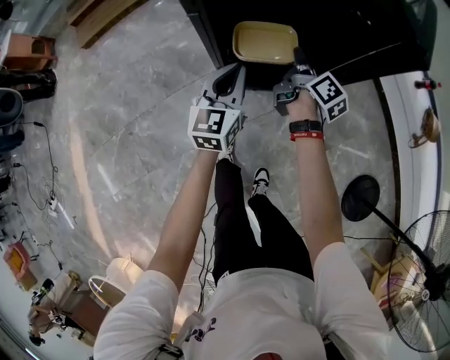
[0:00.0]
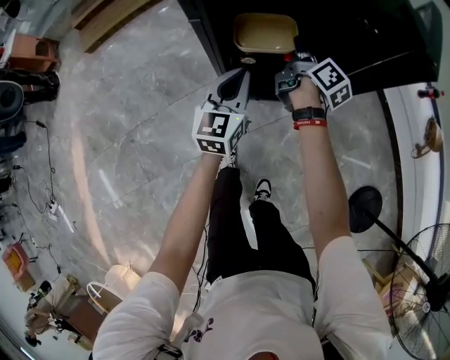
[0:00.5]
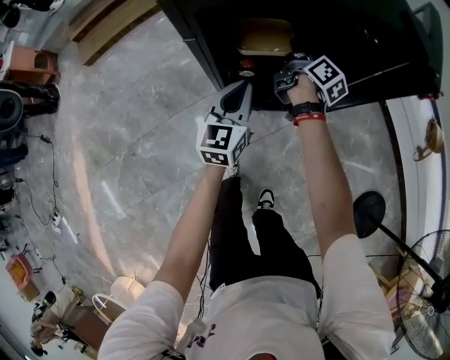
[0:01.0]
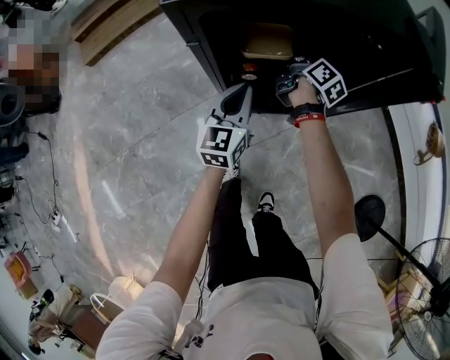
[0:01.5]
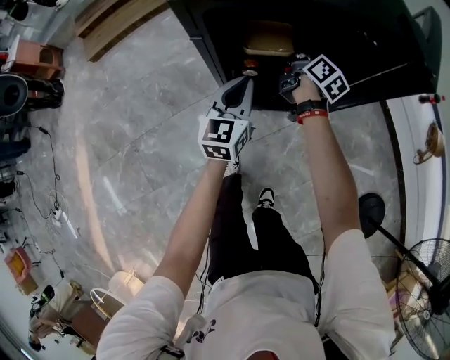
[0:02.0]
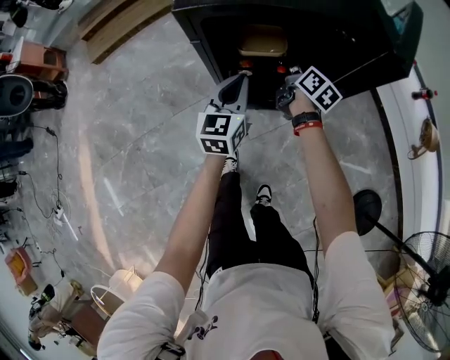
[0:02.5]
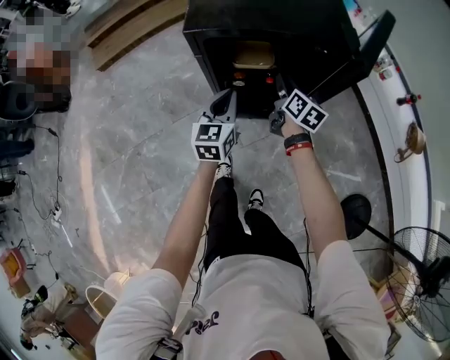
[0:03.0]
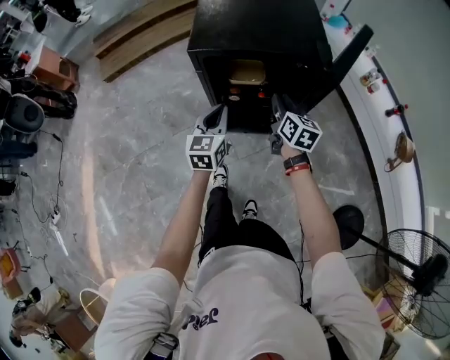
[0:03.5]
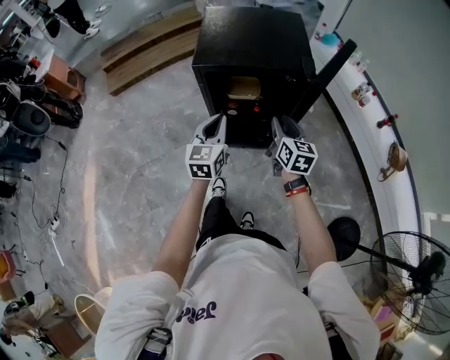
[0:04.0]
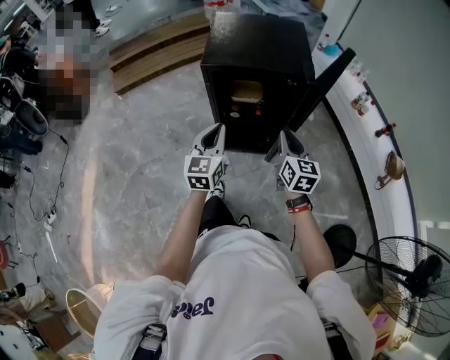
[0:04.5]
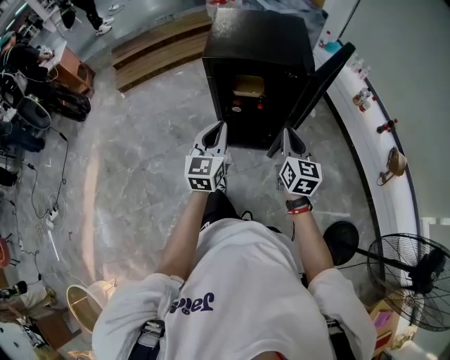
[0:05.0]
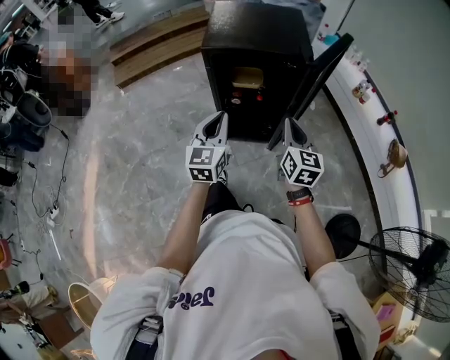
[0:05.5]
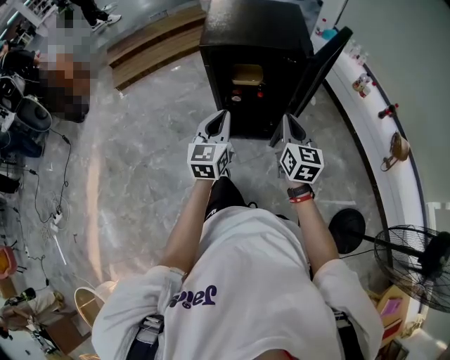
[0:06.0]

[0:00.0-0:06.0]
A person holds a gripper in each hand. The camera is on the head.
0:00.0 to 0:02.0: The right gripper is displaced forward by about 10 cm.
0:02.0 to 0:04.0: The right gripper goes some 40 cm backward and upward, and turns by approximately 40 degrees. The left gripper moves upward and backward, some 30 cm.
0:04.0 to 0:06.0: The left gripper heads backward, covering roughly 10 cm, while the right gripper shifts some 15 cm backward and upward, and closes its fingers.

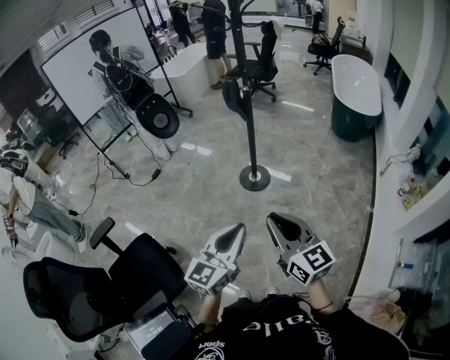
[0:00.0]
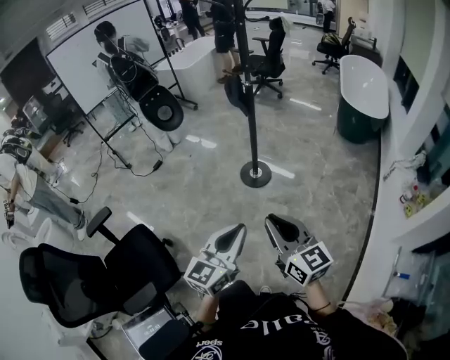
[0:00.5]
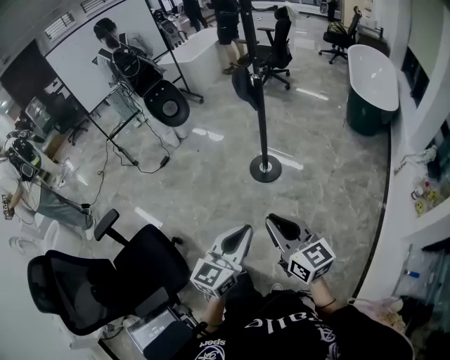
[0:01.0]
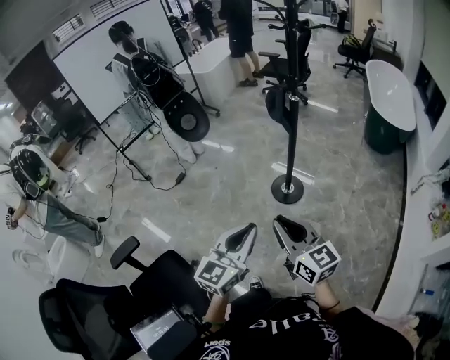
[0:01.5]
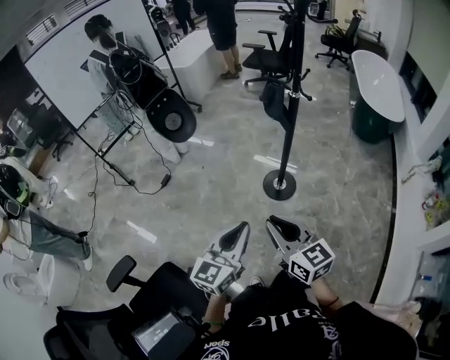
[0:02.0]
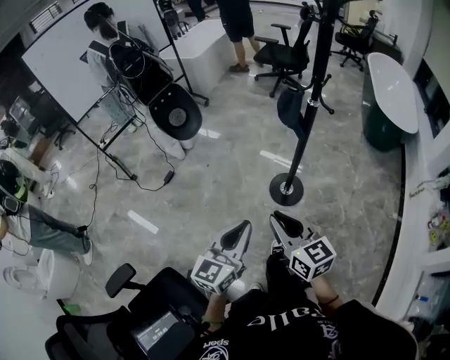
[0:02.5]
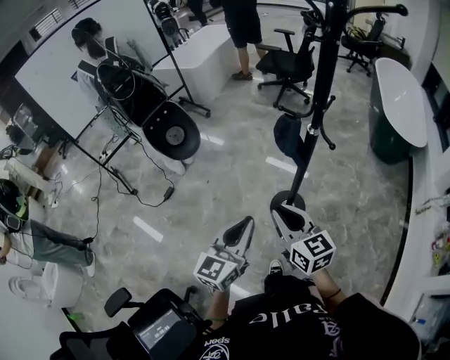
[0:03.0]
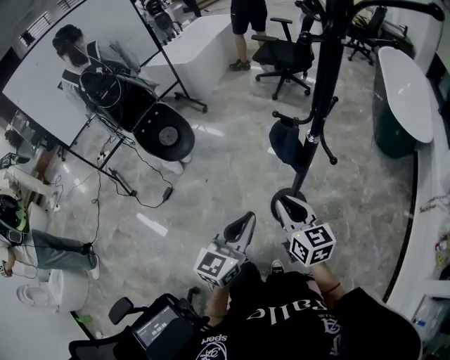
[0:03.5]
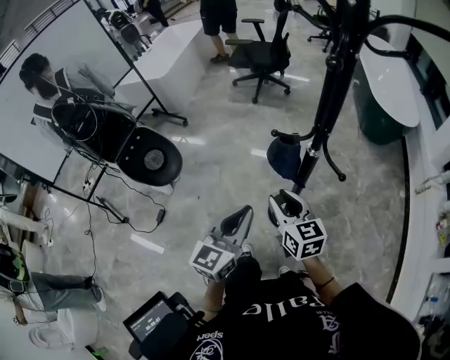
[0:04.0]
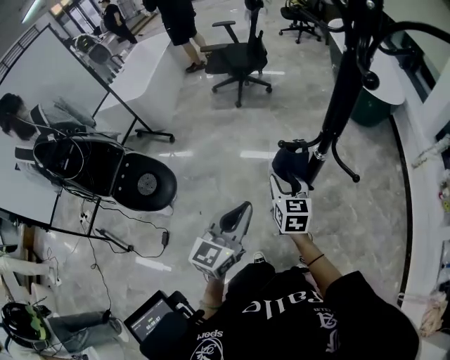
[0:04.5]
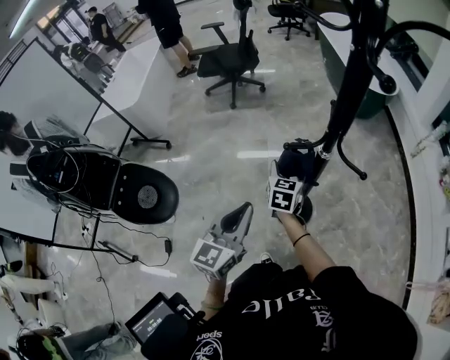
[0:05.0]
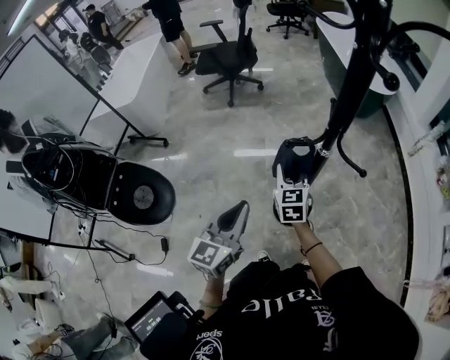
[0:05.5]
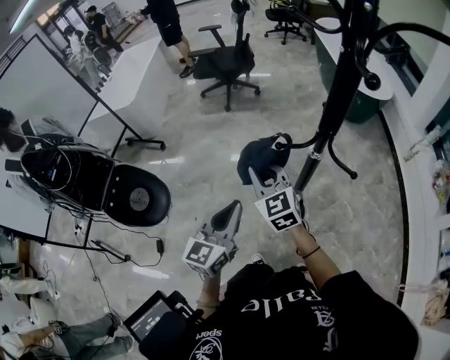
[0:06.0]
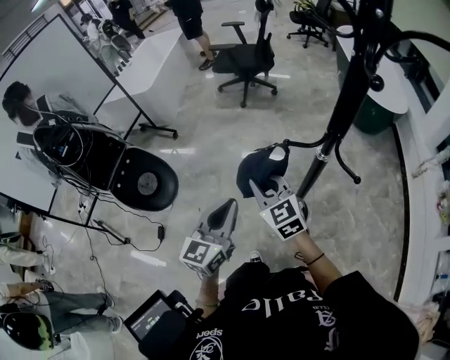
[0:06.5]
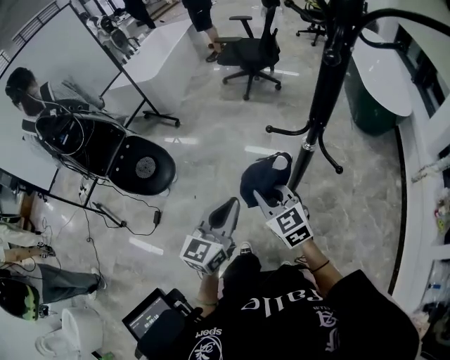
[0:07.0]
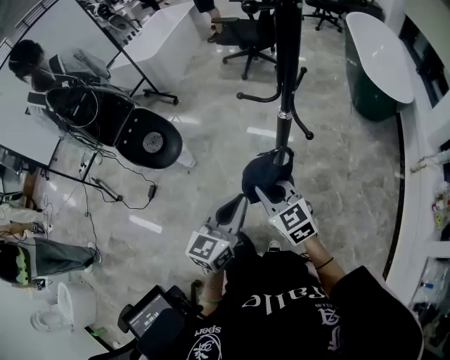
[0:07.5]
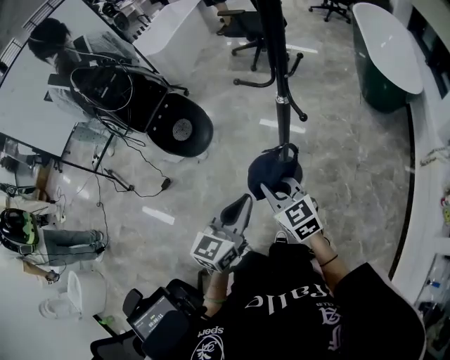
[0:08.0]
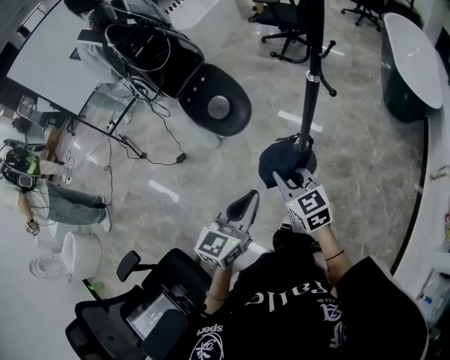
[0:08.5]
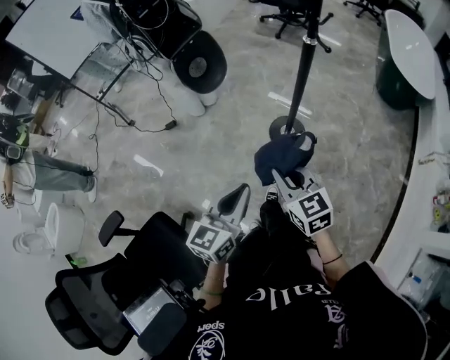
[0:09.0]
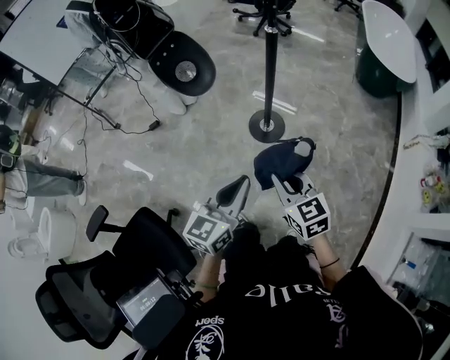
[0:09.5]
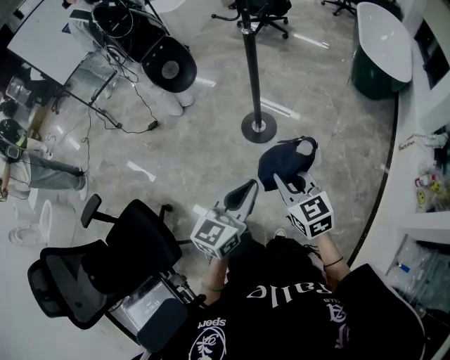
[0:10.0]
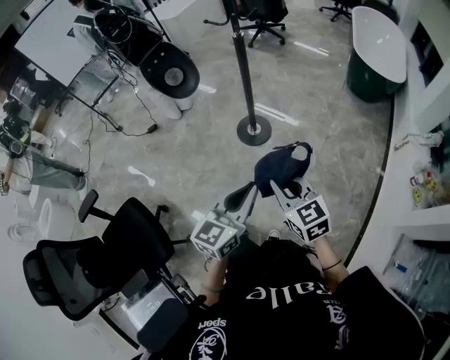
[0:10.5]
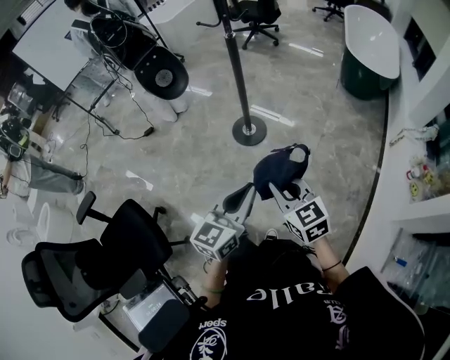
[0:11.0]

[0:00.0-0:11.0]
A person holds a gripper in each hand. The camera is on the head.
0:00.0 to 0:02.0: The grippers both shift forward and to the left by about 40 cm.
0:02.0 to 0:03.5: The grippers both shift forward by some 40 cm.
0:03.5 to 0:05.5: The right gripper ends up roughly 30 cm from where it was, changes its angle by roughly 40 degrees, and opens, then closes again, while the left gripper shifts by approximately 25 cm, and changes its angle by some 20 degrees.
0:05.5 to 0:07.5: The left gripper ends up some 10 cm from where it was; the right gripper ends up about 20 cm from where it was, and rotates about 50 degrees.
0:07.5 to 0:09.0: Both grippers move backward and to the left, some 30 cm.
0:09.0 to 0:11.0: Both grippers travel together to the right and backward, approximately 35 cm.

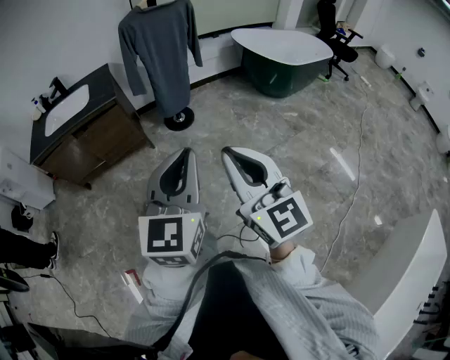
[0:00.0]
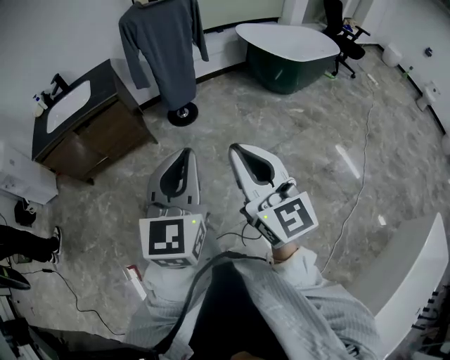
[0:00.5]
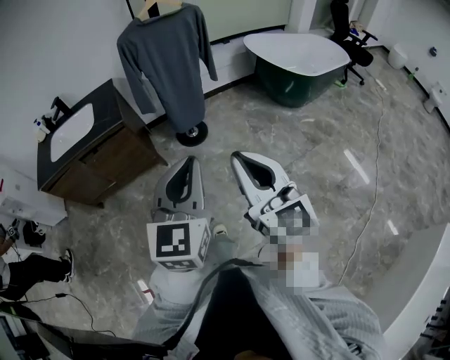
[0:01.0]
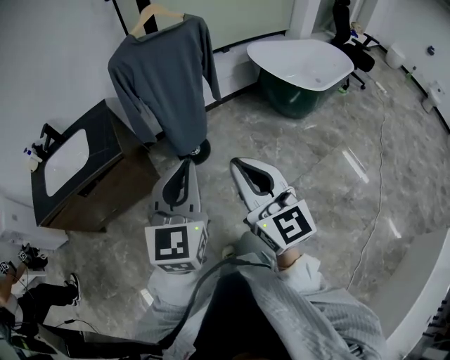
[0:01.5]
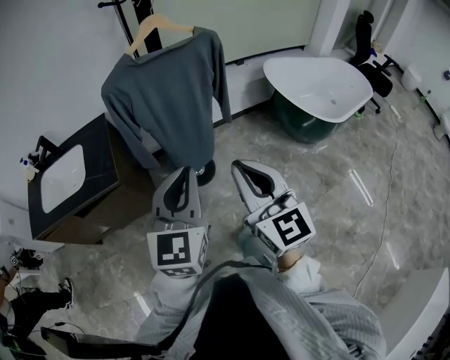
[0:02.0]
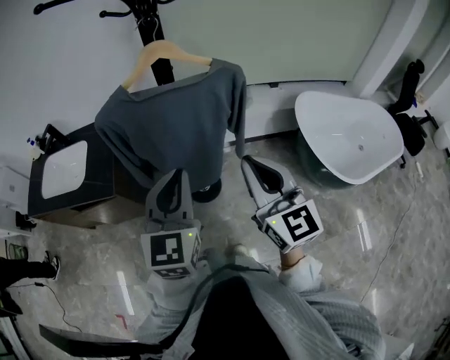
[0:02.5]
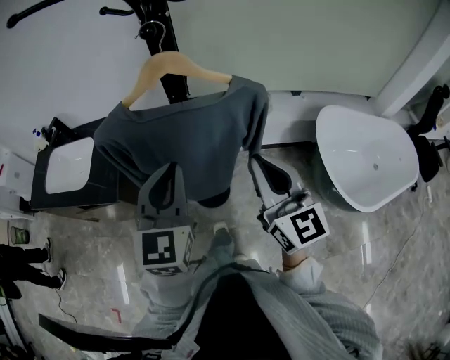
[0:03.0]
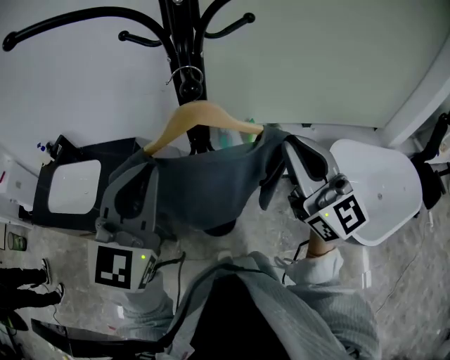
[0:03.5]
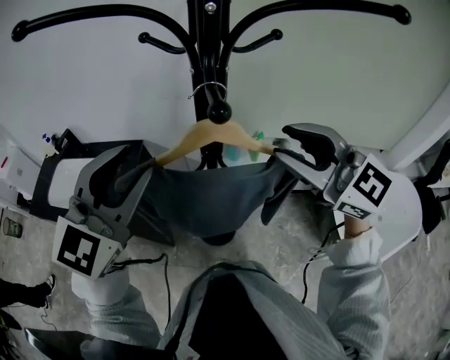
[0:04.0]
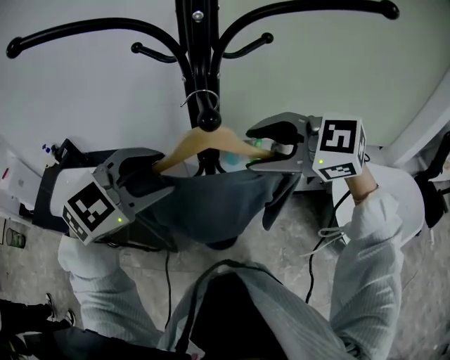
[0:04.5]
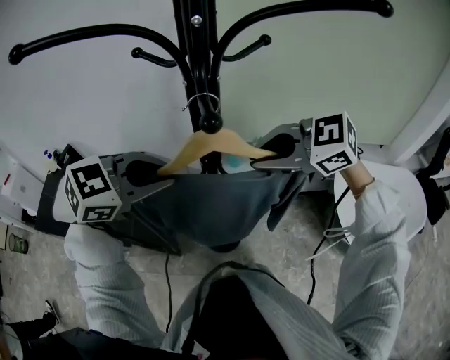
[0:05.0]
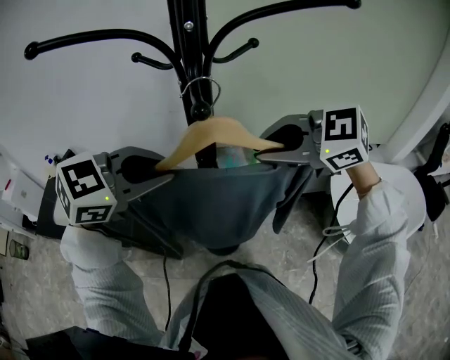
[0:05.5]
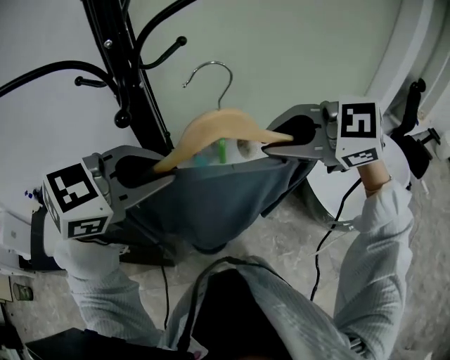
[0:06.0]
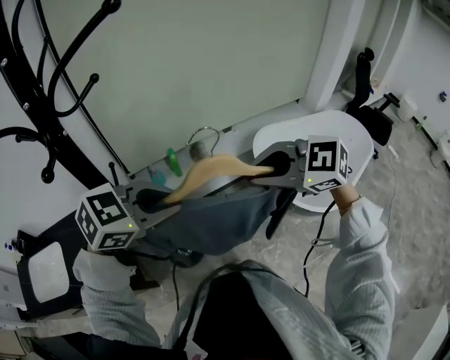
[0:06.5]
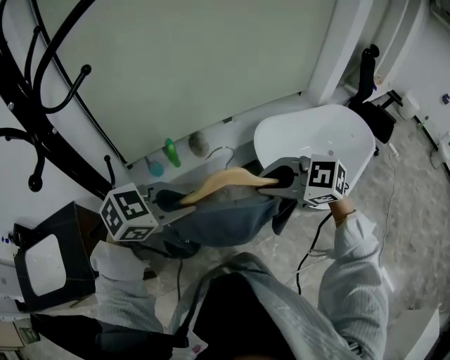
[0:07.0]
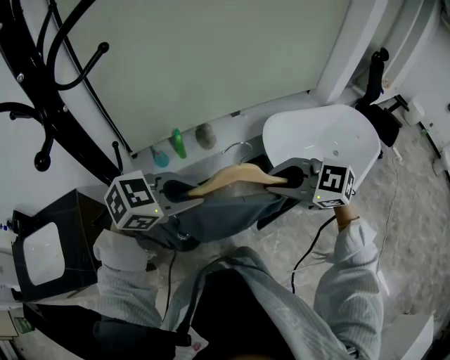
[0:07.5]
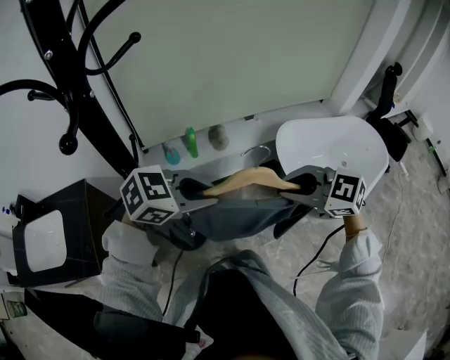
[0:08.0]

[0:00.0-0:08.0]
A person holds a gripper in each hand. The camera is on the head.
0:00.0 to 0:02.0: Both grippers are carried forward, about 60 cm.
0:02.0 to 0:04.0: The right gripper ends up approximately 50 cm from where it was, swivels about 50 degrees, and opens up, while the left gripper ends up some 40 cm from where it was, rotates some 20 degrees, and opens up.
0:04.0 to 0:06.0: The left gripper goes downward and returns, roughly 10 cm each way, turns by roughly 50 degrees, and closes its fingers; the right gripper moves approximately 10 cm, rotates about 30 degrees, and opens, then closes again.
0:06.0 to 0:08.0: The grippers both shift downward by roughly 15 cm. The left gripper swivels about 30 degrees.

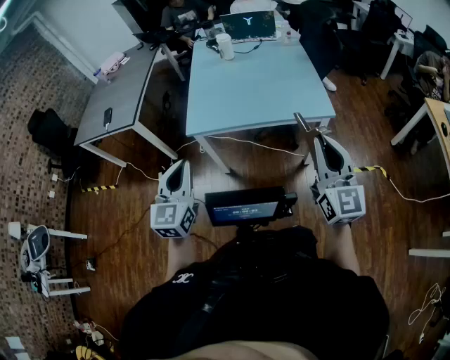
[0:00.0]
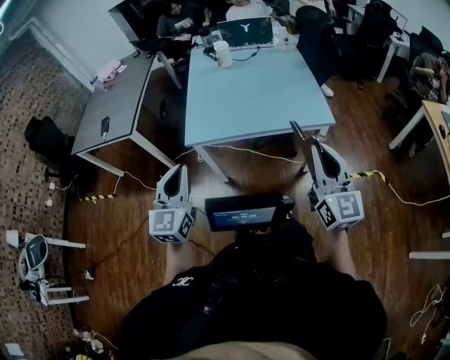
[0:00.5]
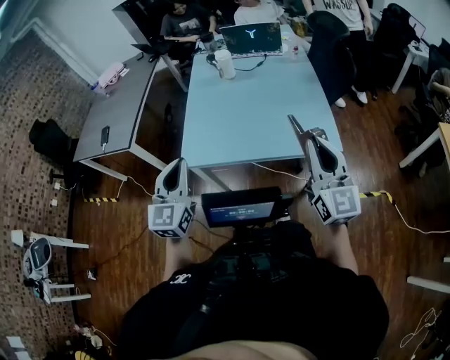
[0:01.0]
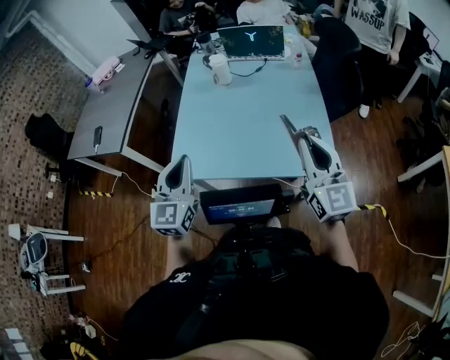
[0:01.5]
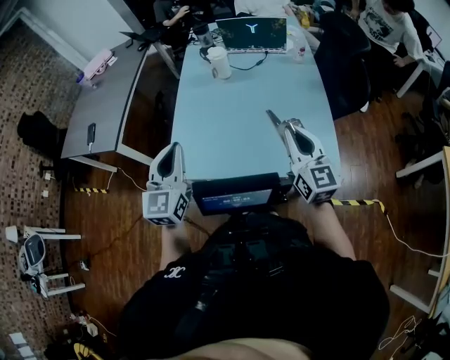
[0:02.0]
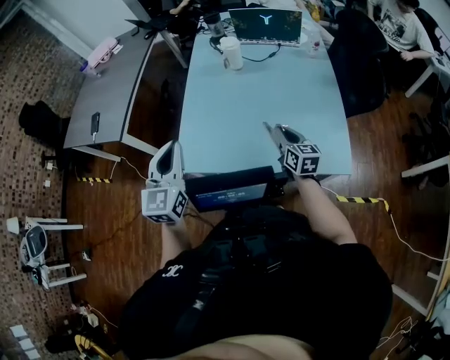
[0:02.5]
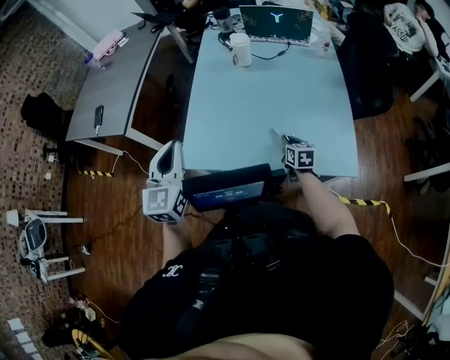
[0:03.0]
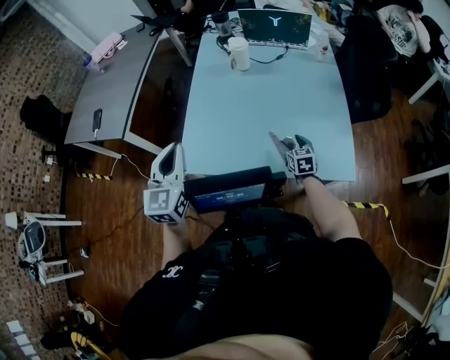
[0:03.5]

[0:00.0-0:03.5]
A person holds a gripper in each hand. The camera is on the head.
0:00.0 to 0:02.0: The grippers both shift forward by approximately 35 cm.
0:02.0 to 0:03.5: The right gripper travels downward by about 30 cm, angles its fingers downward, by some 40 degrees, and opens its fingers. The left gripper travels to the left by some 5 cm.
